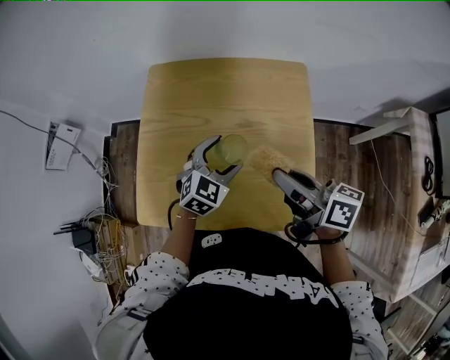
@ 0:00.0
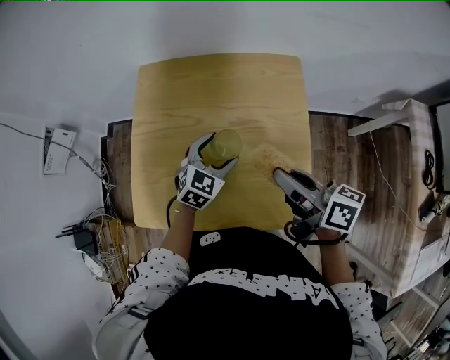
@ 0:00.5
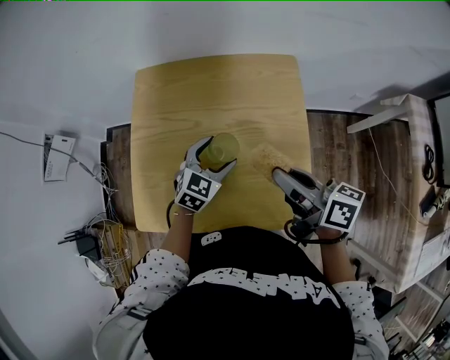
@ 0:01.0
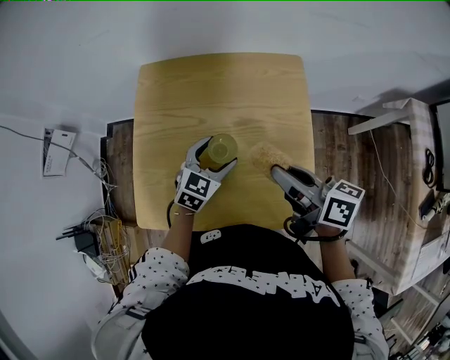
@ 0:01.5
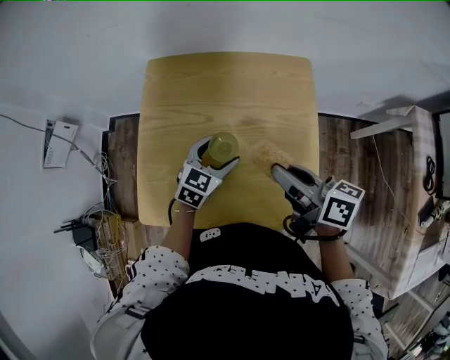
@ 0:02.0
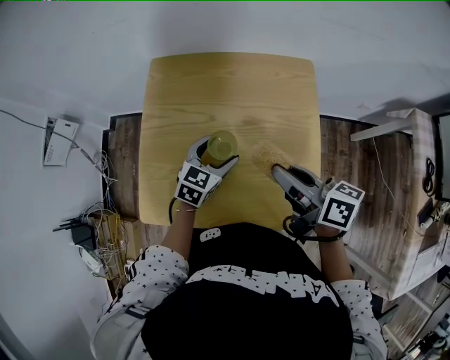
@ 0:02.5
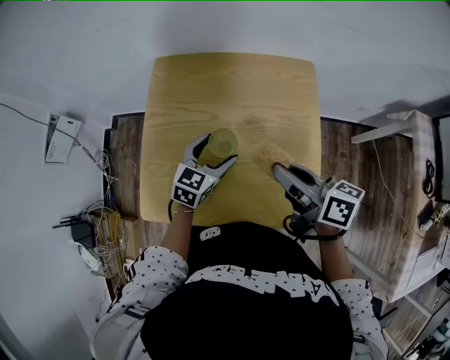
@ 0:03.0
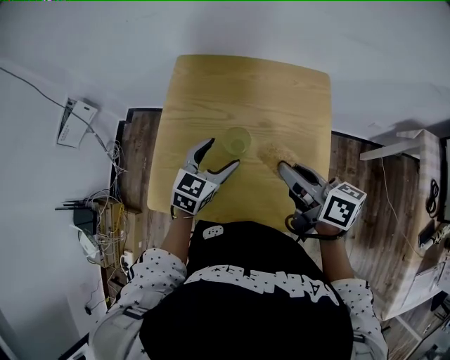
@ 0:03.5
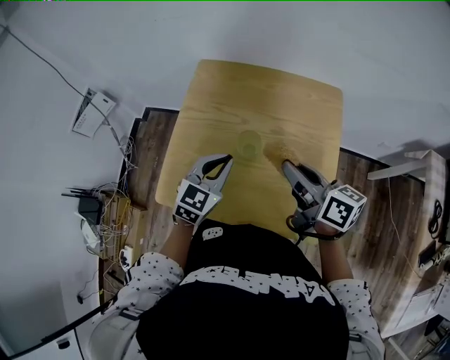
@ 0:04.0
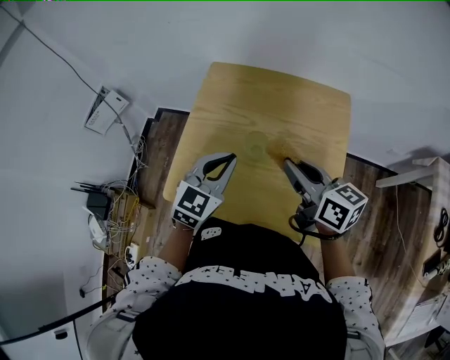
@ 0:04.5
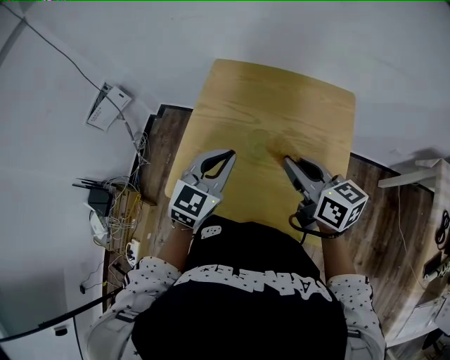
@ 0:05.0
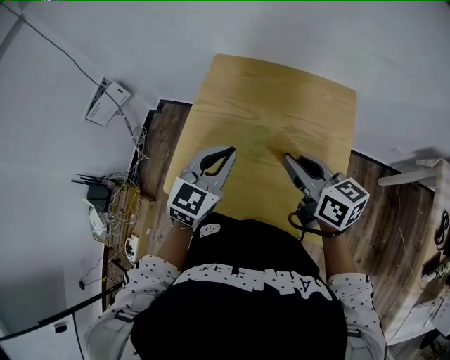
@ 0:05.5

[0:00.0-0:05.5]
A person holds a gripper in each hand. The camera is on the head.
0:00.0 to 0:02.0: The grippers make only small movements.
0:02.0 to 0:03.5: The left gripper ends up roughly 5 cm from where it was.
0:03.5 to 0:05.5: The left gripper moves upward, some 10 cm, and closes up.

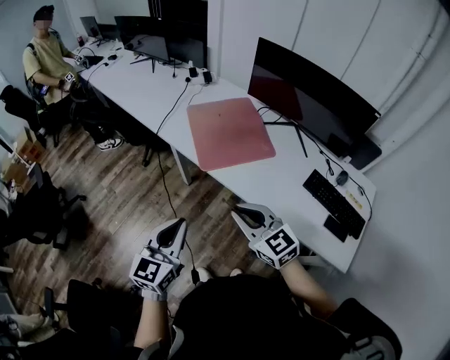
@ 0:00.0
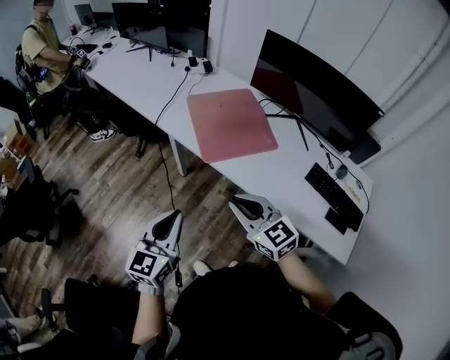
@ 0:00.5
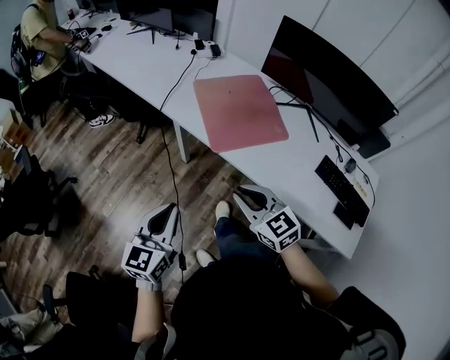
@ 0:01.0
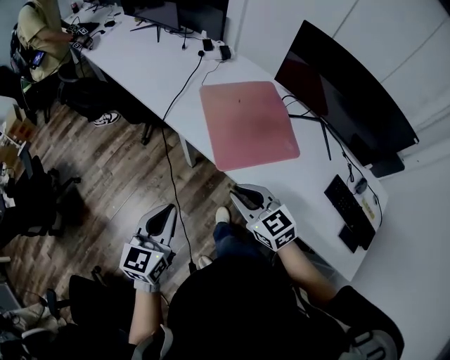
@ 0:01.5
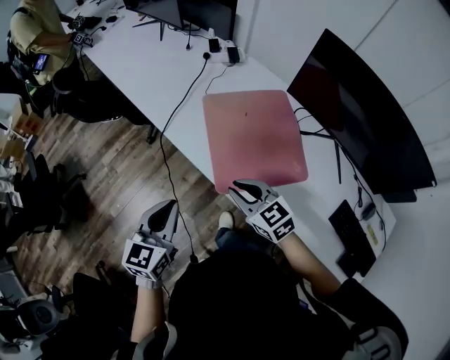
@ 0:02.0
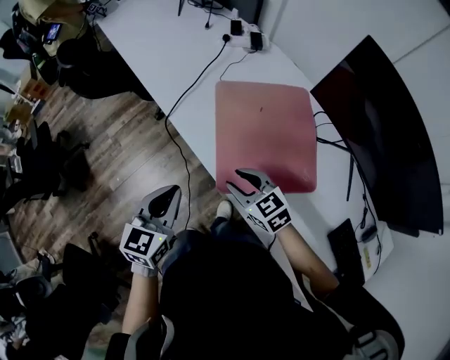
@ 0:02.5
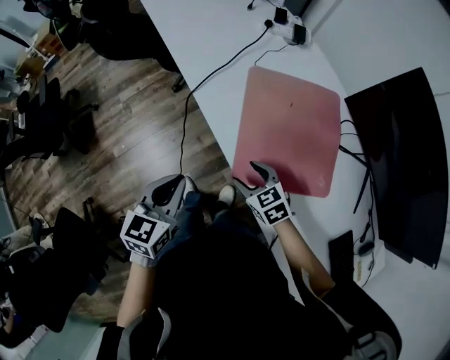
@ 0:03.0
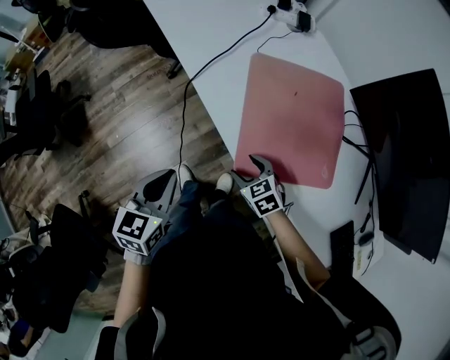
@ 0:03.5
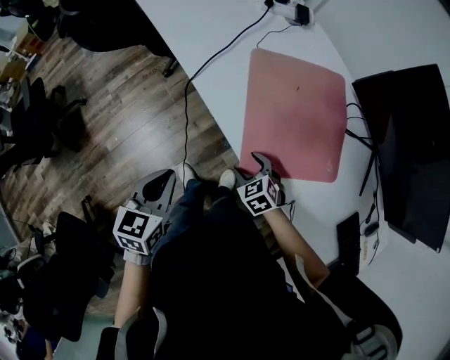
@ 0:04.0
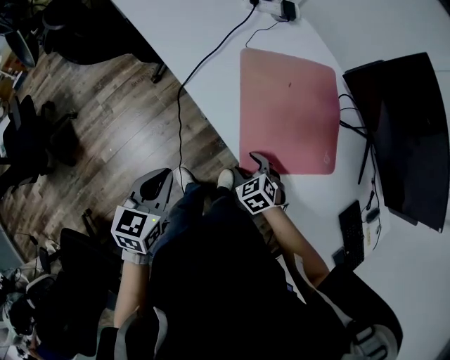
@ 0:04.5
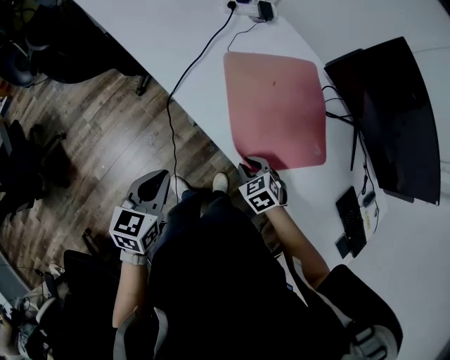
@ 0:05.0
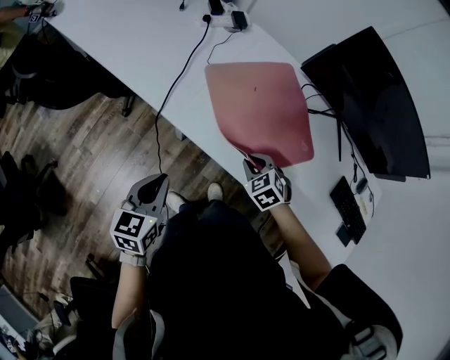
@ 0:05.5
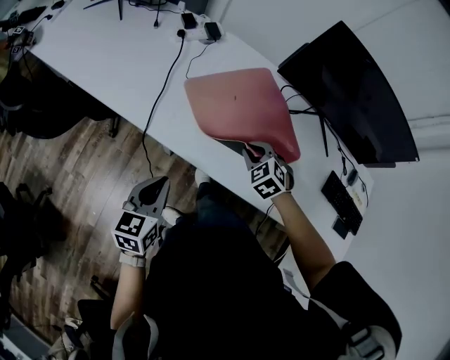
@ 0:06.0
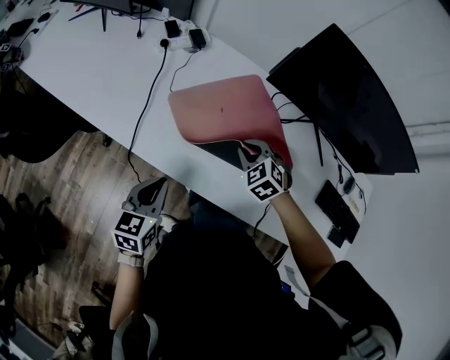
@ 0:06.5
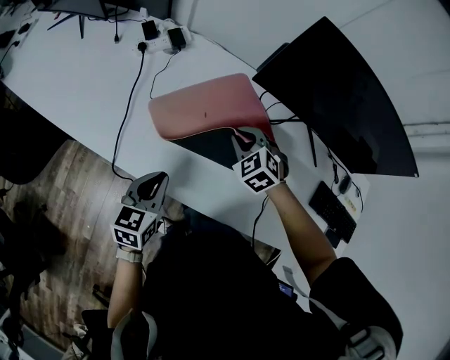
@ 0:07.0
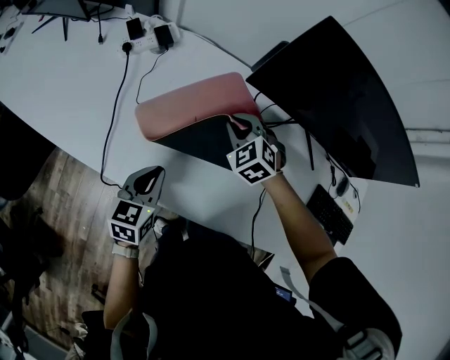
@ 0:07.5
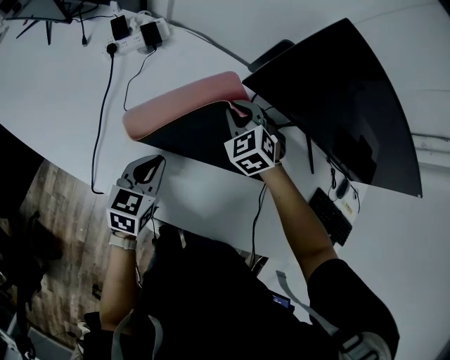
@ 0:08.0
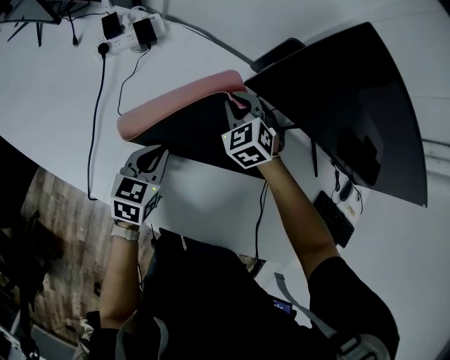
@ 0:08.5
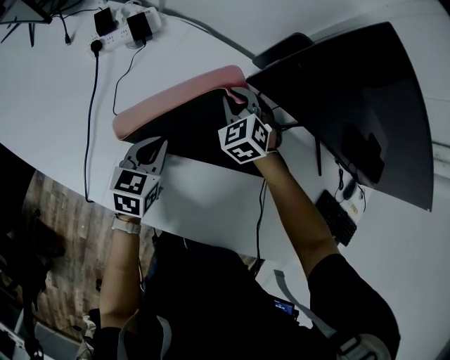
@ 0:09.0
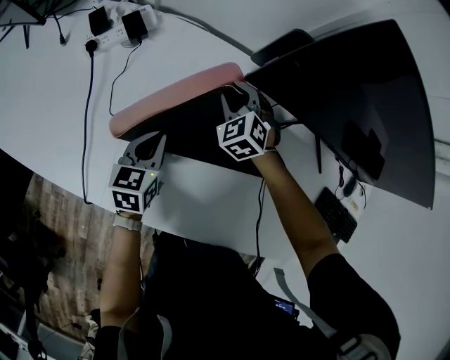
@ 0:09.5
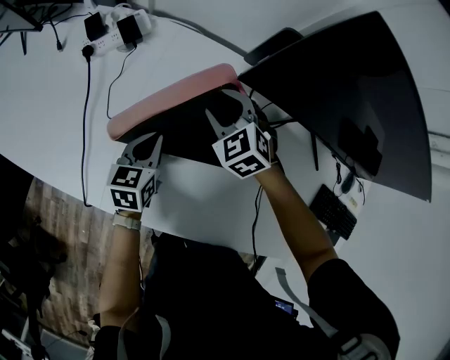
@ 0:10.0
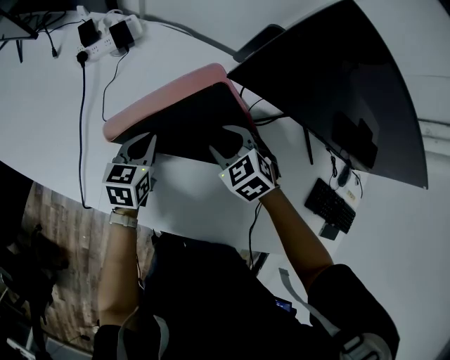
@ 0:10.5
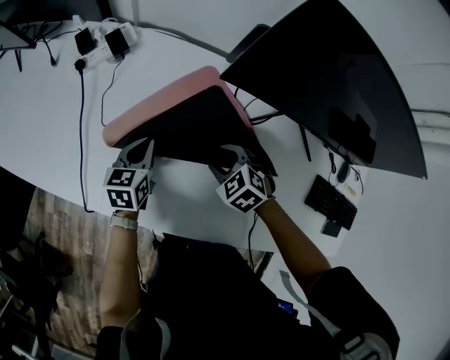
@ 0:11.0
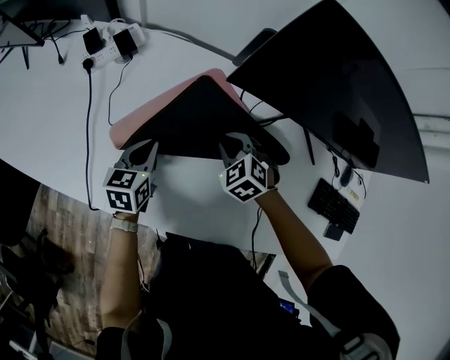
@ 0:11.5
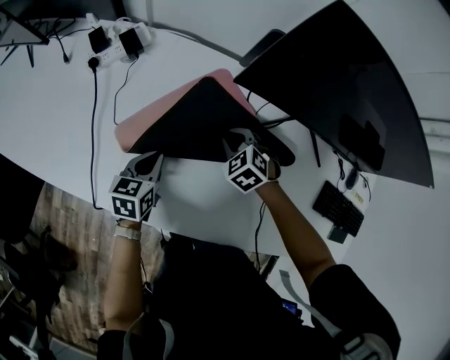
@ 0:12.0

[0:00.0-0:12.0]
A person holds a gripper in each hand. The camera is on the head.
0:00.0 to 0:02.0: Both grippers move forward, roughly 30 cm.
0:02.0 to 0:04.0: The left gripper is displaced downward, to the left and forward by approximately 15 cm, and changes its angle by some 20 degrees; the right gripper heads downward, covering about 20 cm, turns by approximately 30 degrees, and opens up.
0:04.0 to 0:06.0: The right gripper travels upward by roughly 15 cm, turns by roughly 30 degrees, and closes its fingers. Meanwhile the left gripper ends up some 10 cm from where it was, and changes its angle by approximately 30 degrees.
0:06.0 to 0:08.0: The two grippers go approximately 25 cm forward.
0:08.0 to 0:10.0: The left gripper shifts approximately 10 cm forward and downward. The right gripper opens up.
0:10.0 to 0:12.0: The right gripper heads backward, downward and to the right, covering some 10 cm, and closes.

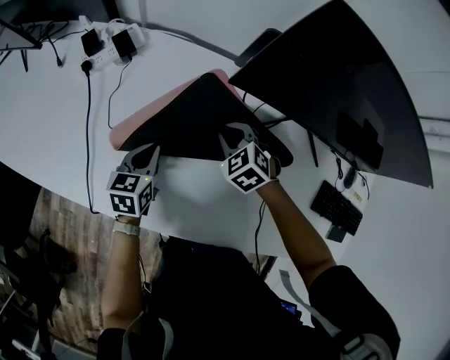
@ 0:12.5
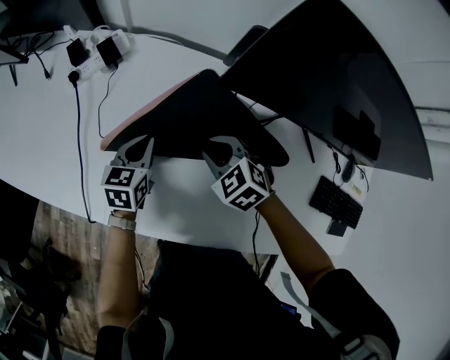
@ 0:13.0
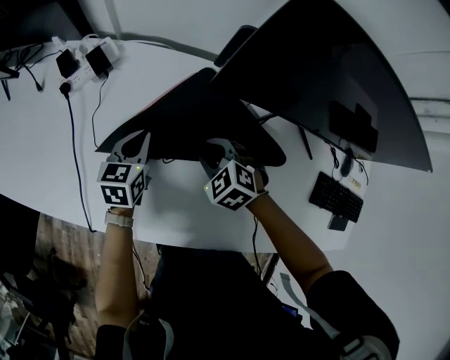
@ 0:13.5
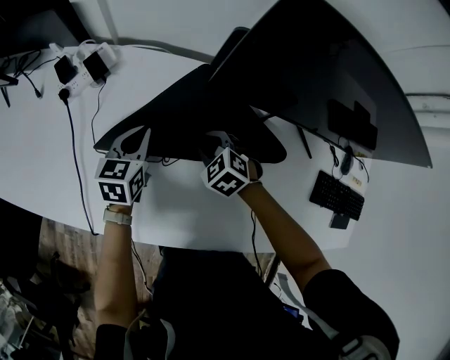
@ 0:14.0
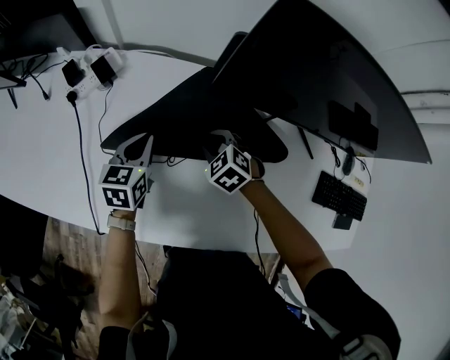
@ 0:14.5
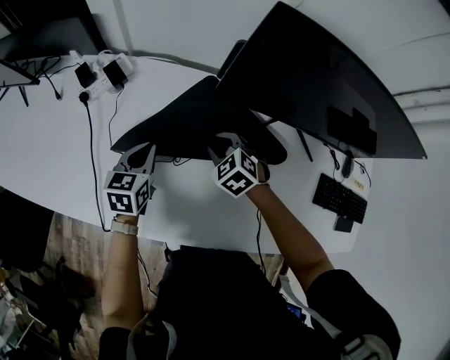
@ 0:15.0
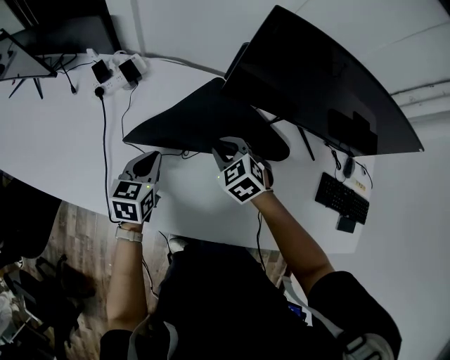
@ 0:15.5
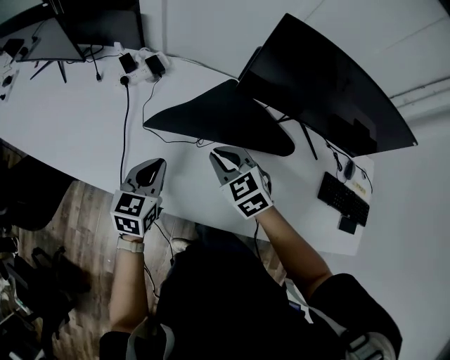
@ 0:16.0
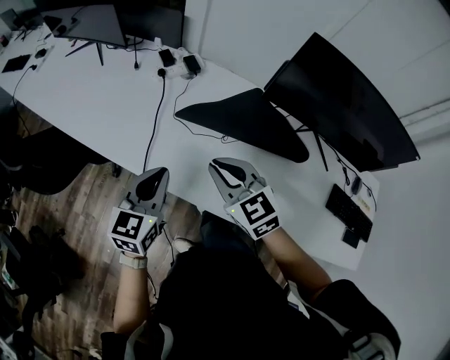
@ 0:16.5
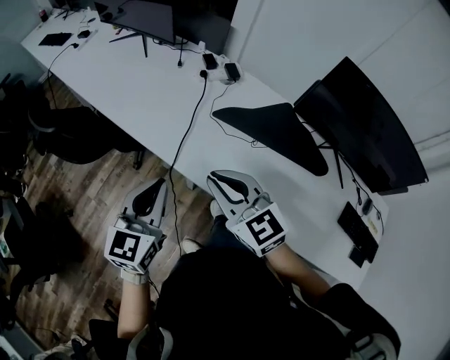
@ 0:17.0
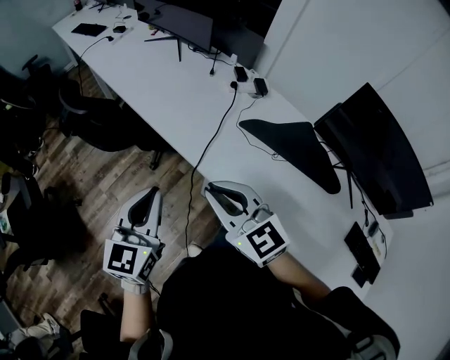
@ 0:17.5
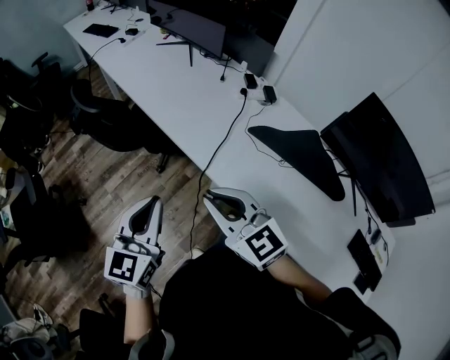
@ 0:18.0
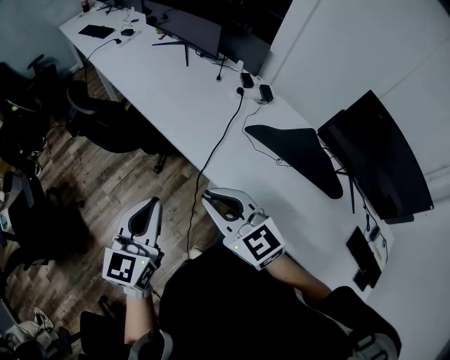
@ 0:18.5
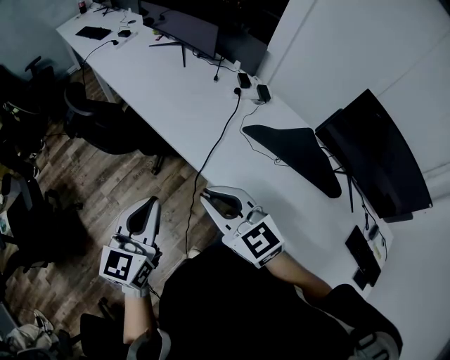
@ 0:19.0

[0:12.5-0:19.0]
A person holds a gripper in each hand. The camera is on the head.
0:12.5 to 0:14.5: The left gripper heads forward, covering roughly 5 cm.
0:14.5 to 0:17.0: Both grippers are carried approximately 40 cm. The left gripper rotates about 30 degrees; the right gripper angles its fingers upward, by about 40 degrees.
0:17.0 to 0:19.0: Both grippers move to the left, approximately 10 cm.

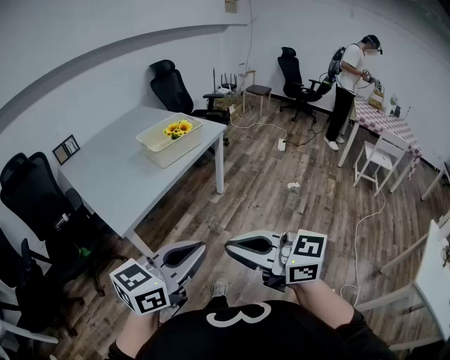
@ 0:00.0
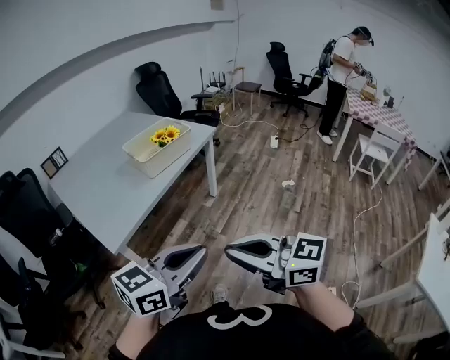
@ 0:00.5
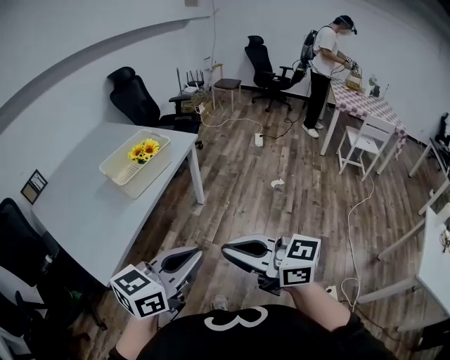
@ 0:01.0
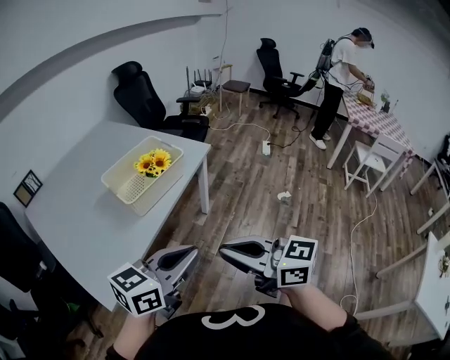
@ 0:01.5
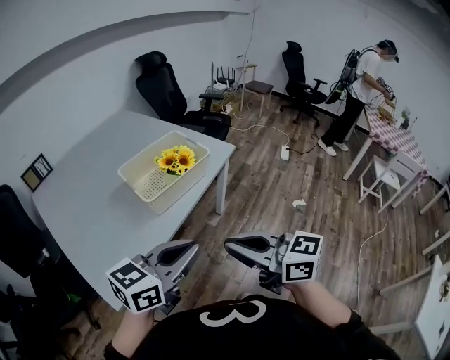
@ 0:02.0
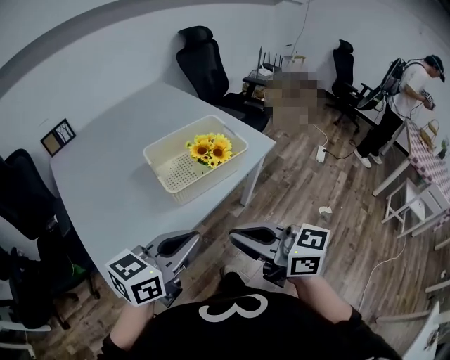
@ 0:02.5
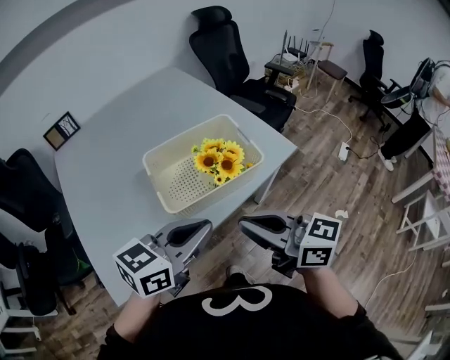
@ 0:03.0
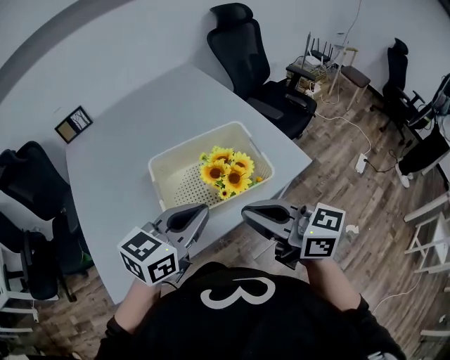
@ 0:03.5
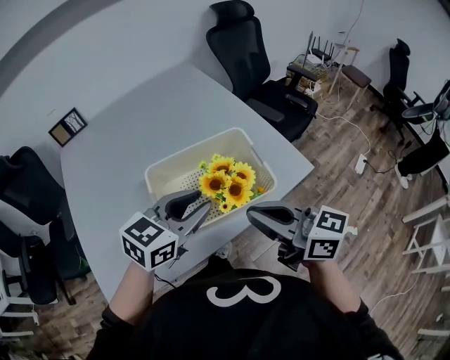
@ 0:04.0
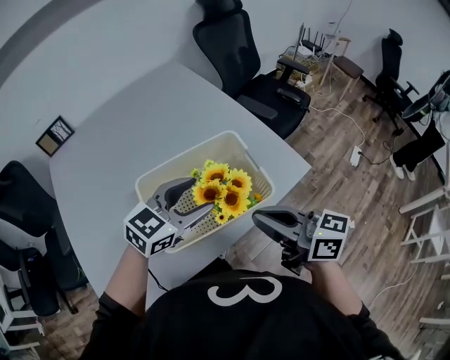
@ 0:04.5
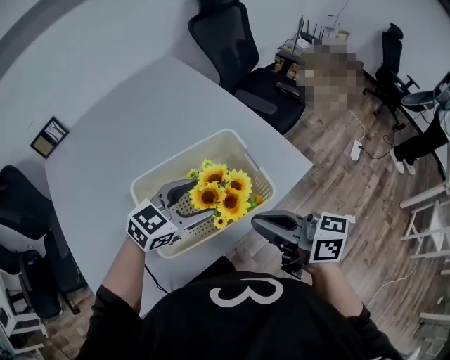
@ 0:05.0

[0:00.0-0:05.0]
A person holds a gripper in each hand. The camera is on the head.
0:00.0 to 0:02.5: The two grippers travel together, forward, roughly 40 cm.
0:02.5 to 0:05.0: Both grippers move forward, approximately 30 cm. The left gripper changes its angle by approximately 20 degrees, and opens up.
